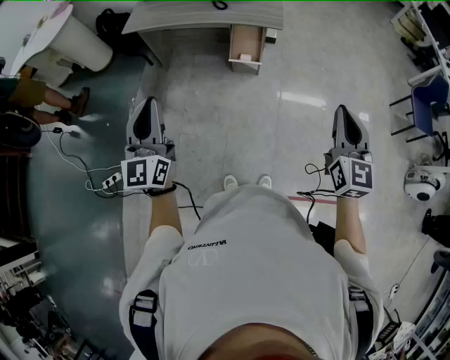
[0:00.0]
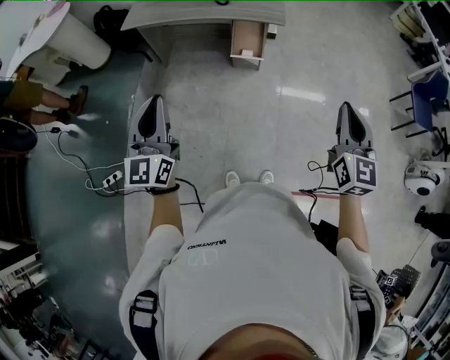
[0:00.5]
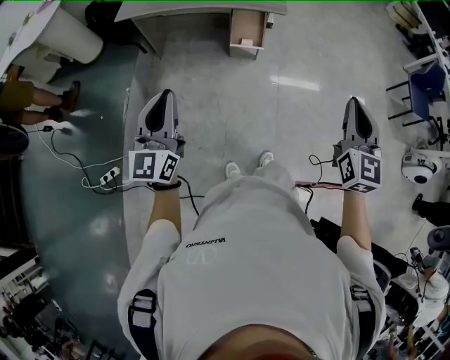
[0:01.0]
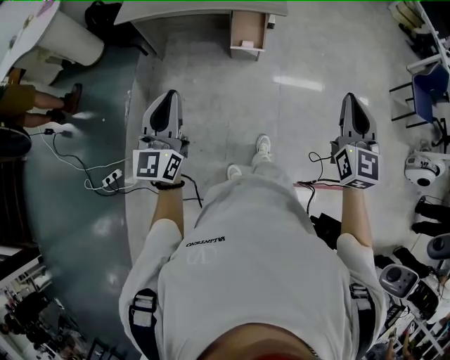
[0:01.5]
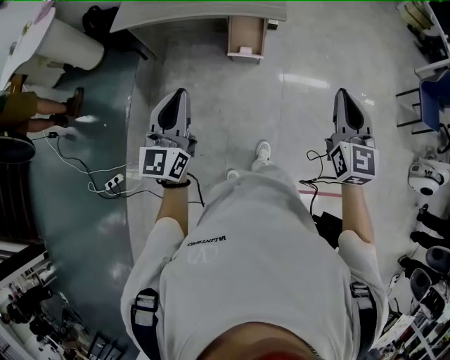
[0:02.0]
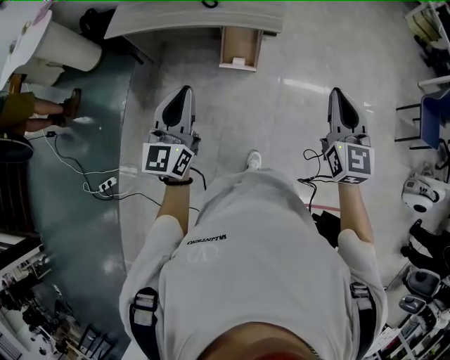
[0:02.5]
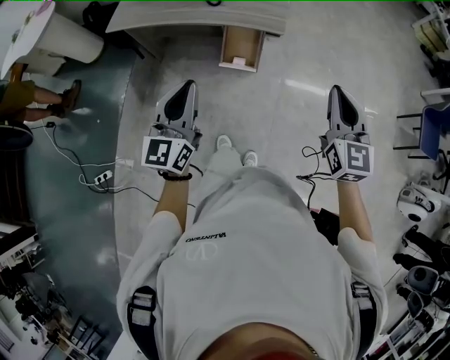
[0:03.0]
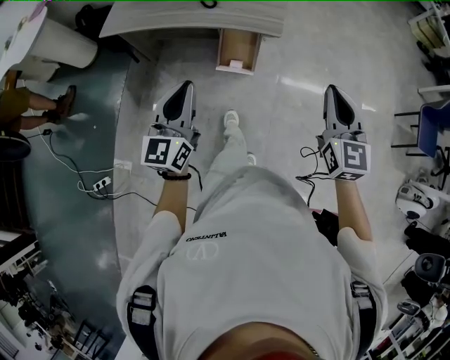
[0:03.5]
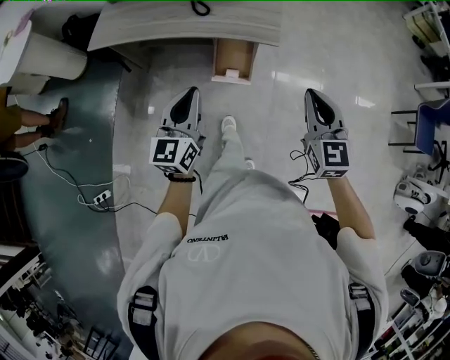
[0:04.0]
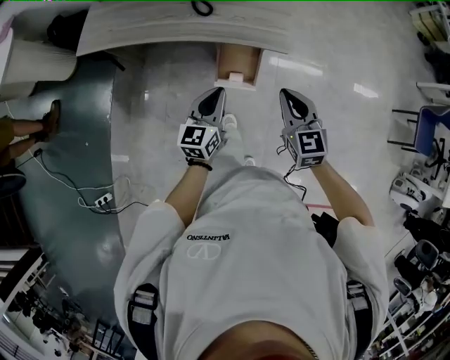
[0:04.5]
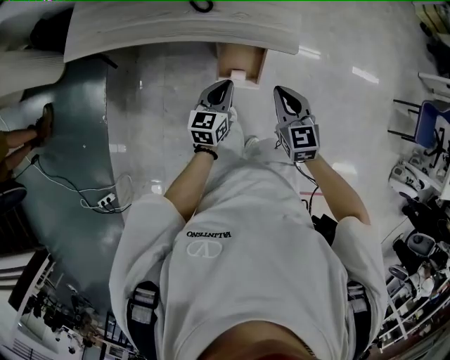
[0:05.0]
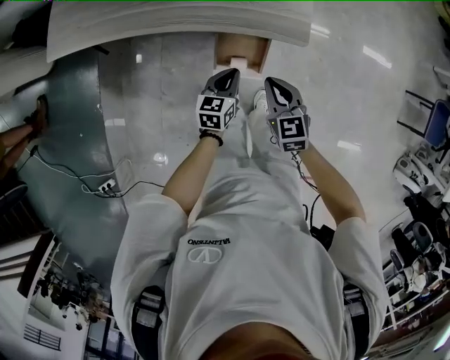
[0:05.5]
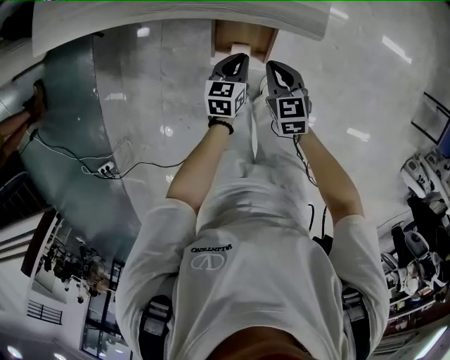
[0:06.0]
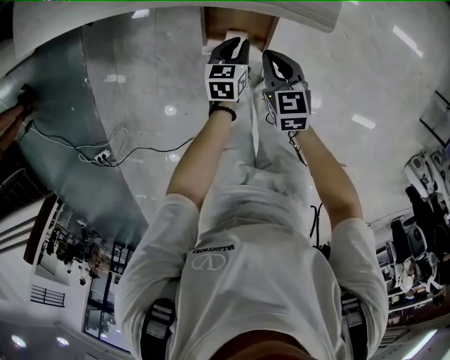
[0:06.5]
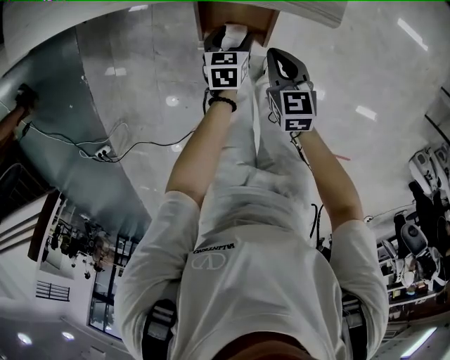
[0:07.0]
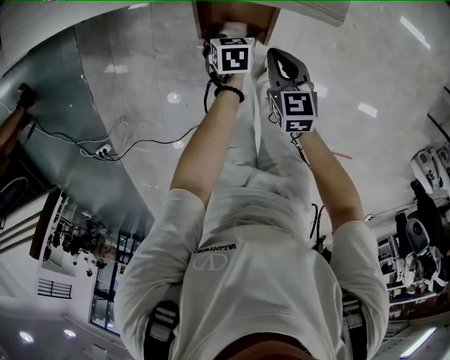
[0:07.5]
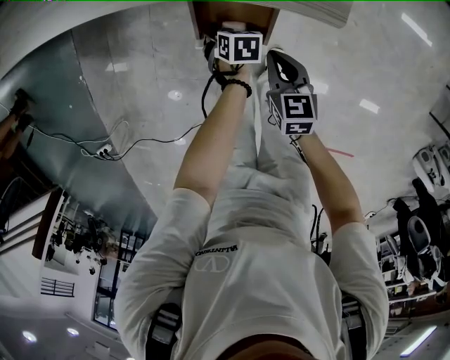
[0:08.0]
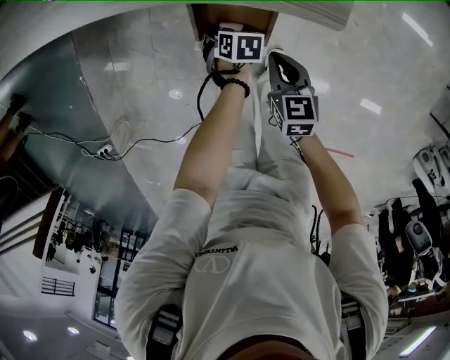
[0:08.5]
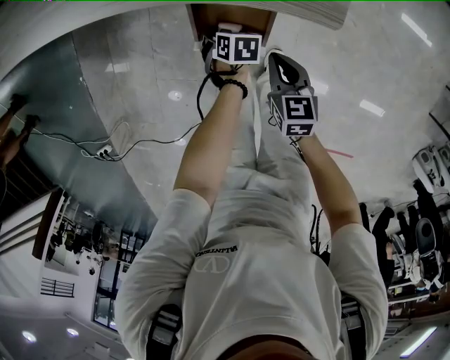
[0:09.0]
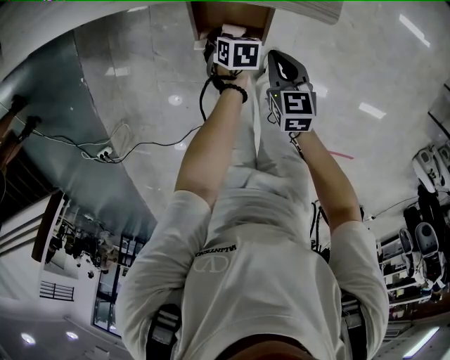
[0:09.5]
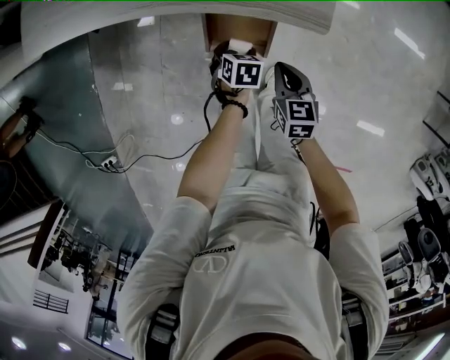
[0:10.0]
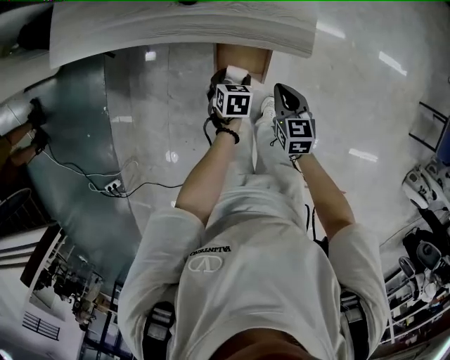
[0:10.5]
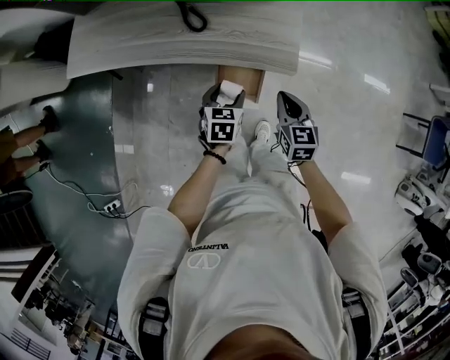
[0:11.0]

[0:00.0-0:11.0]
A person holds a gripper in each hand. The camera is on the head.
0:00.0 to 0:02.0: The left gripper shifts about 15 cm forward, downward and to the right. The right gripper travels forward by some 10 cm.
0:02.0 to 0:03.5: The right gripper heads forward, covering approximately 15 cm; the left gripper shifts some 15 cm forward and to the right.
0:03.5 to 0:05.5: The left gripper moves downward and forward, some 50 cm, and tilts its fingers about 40 degrees downward, while the right gripper is displaced downward, forward and to the left by some 40 cm, and swivels some 30 degrees.
0:05.5 to 0:07.5: The two grippers go approximately 20 cm downward. The left gripper points its fingers approximately 40 degrees further downward, and opens up.
0:07.5 to 0:09.0: There are only small adjustments of the grippers.
0:09.0 to 0:11.0: Both grippers travel together upward, approximately 30 cm. The left gripper points its fingers some 30 degrees further upward.

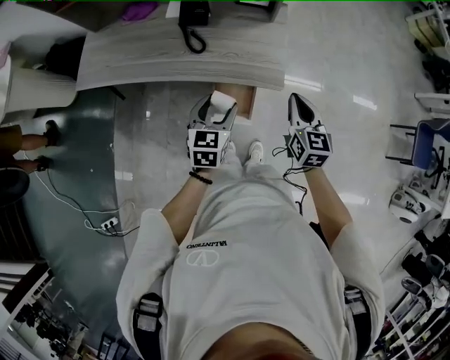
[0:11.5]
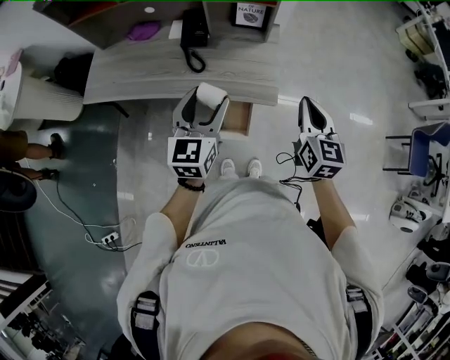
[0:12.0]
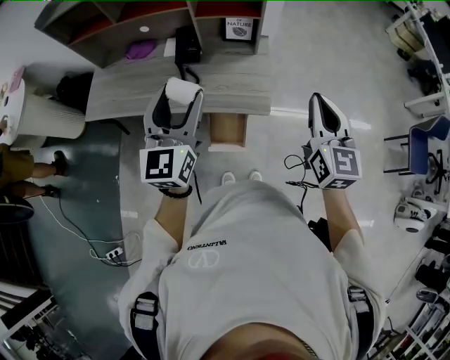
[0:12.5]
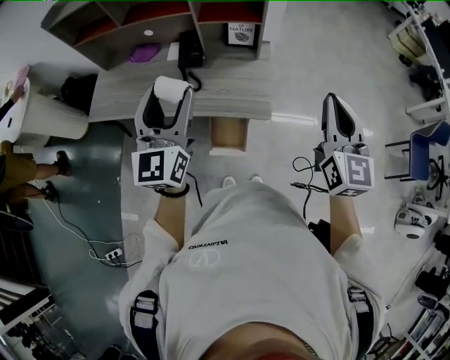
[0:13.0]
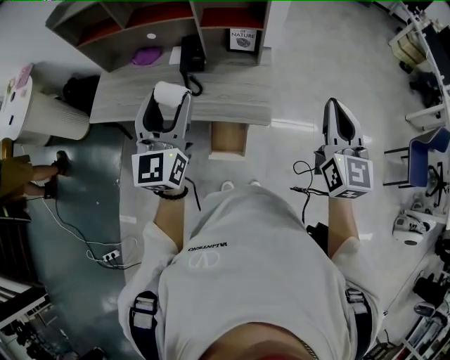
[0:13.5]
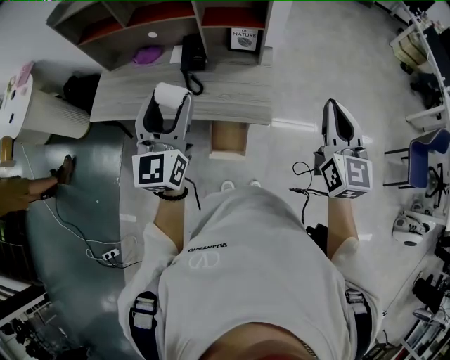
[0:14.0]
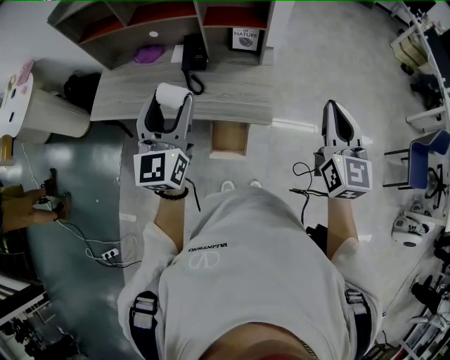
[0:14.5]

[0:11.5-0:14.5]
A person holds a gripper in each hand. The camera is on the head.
0:11.5 to 0:13.0: Both grippers move upward, some 30 cm. The right gripper swivels approximately 20 degrees; the left gripper angles its fingers upward, by approximately 40 degrees.
0:13.0 to 0:14.5: The grippers move only a little.

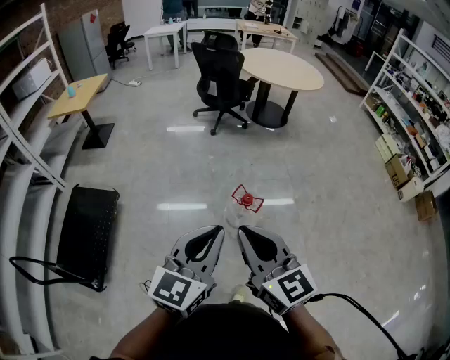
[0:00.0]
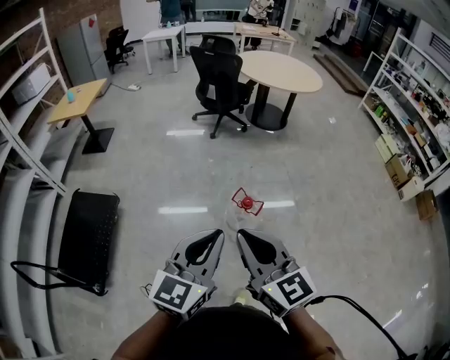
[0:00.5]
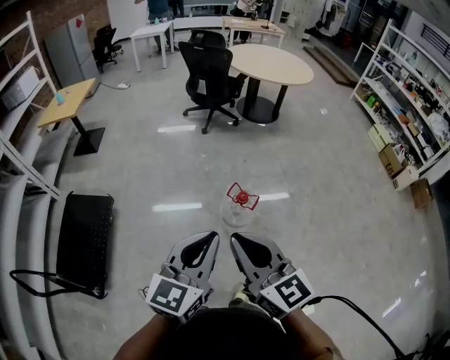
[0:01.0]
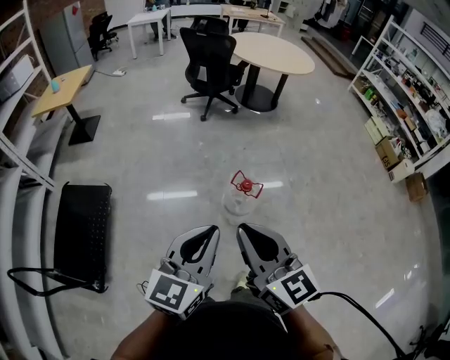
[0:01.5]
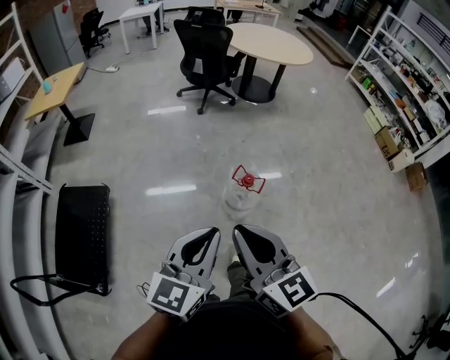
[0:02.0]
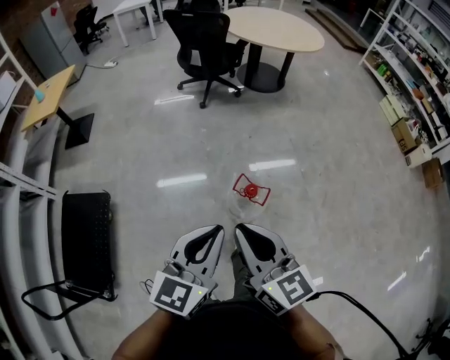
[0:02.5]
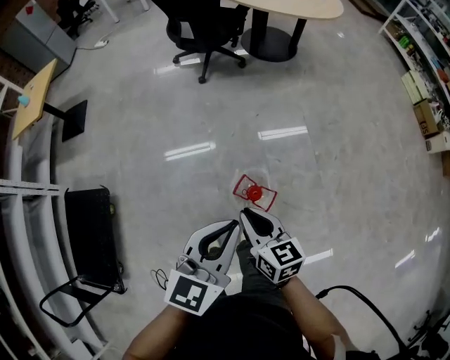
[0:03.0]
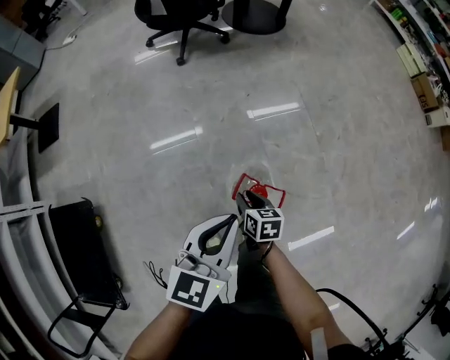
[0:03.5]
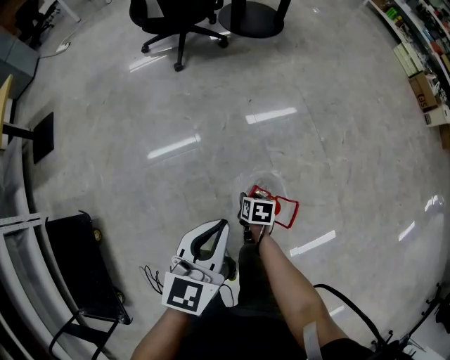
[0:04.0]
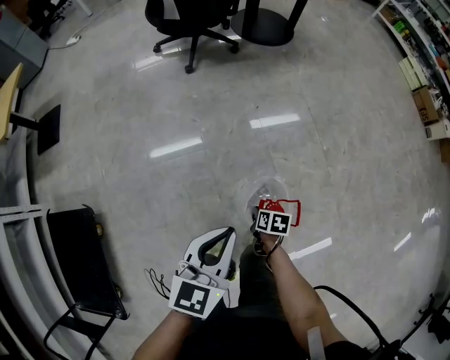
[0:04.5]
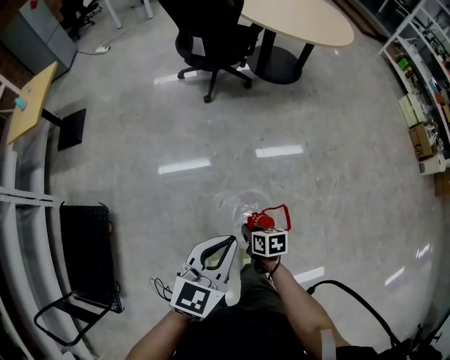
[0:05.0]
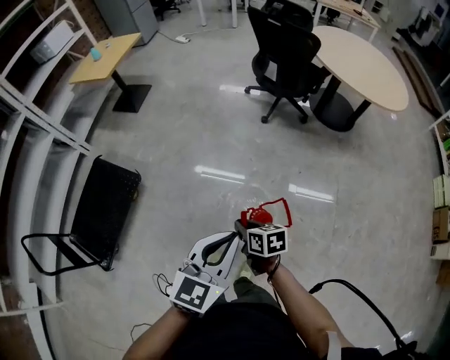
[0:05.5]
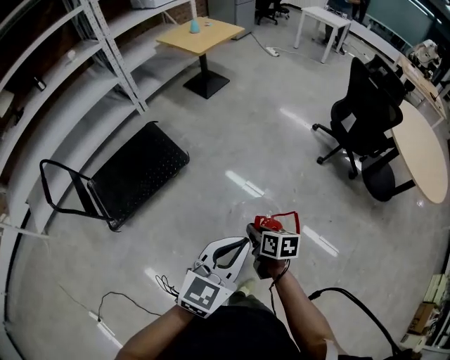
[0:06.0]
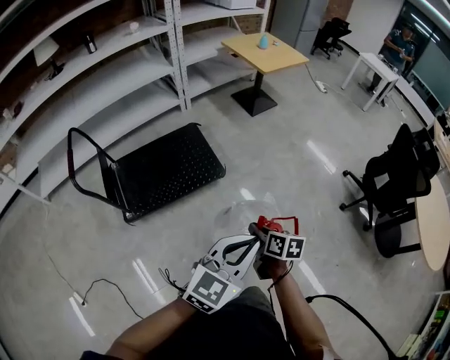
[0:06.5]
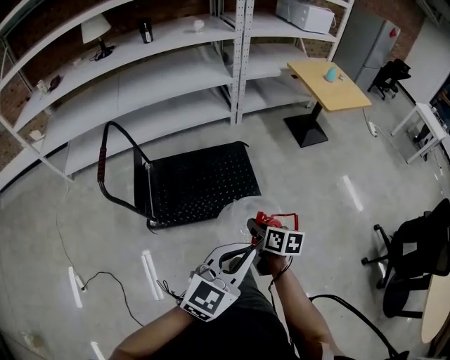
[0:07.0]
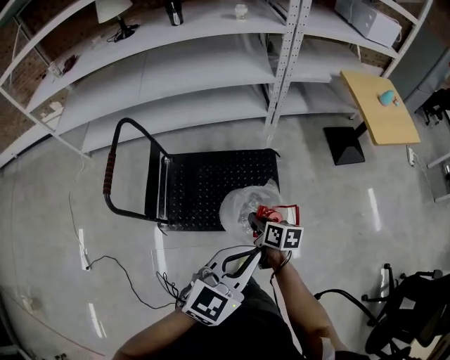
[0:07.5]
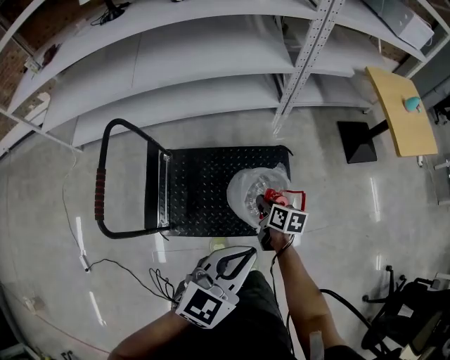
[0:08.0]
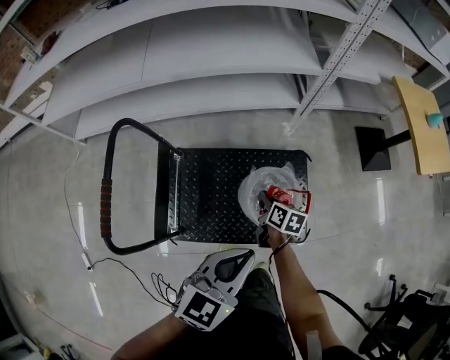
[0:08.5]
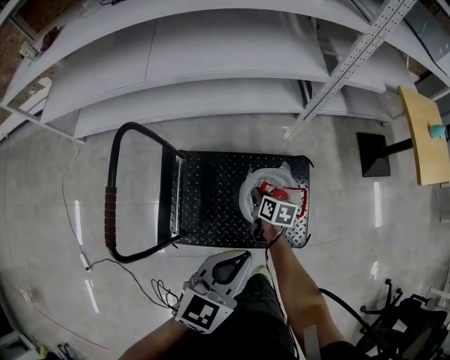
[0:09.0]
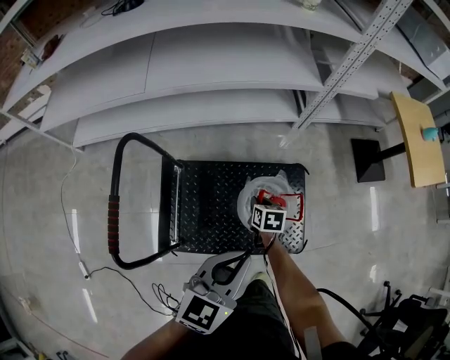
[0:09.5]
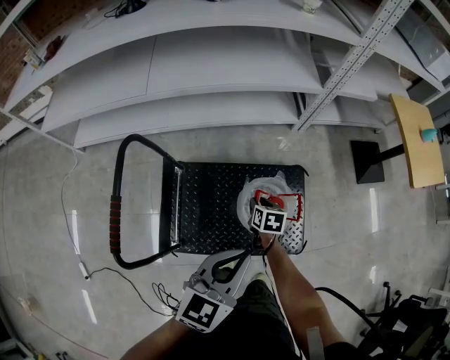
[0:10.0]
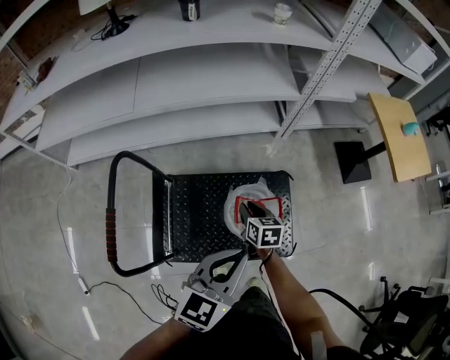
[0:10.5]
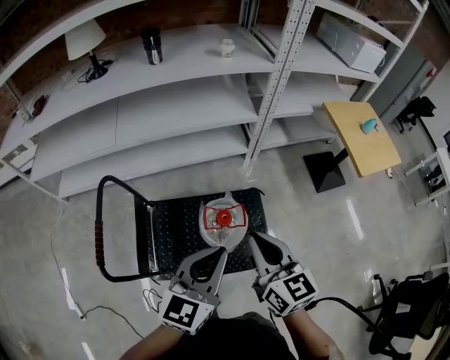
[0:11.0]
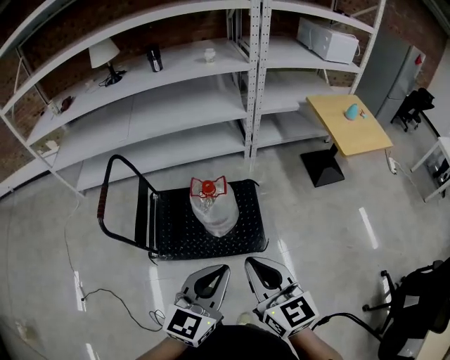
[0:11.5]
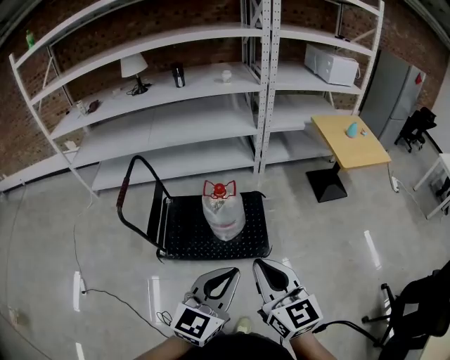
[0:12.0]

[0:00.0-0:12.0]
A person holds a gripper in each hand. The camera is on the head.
0:00.0 to 0:02.0: Both grippers travel together to the left, about 10 cm.
0:02.0 to 0:04.0: The two grippers travel together, forward, some 50 cm. The right gripper heads downward, covering approximately 70 cm, points its fingers roughly 60 degrees further downward, and opens. Meanwhile the left gripper heads downward, covering approximately 35 cm.
0:04.0 to 0:06.0: The two grippers go about 35 cm upward. The left gripper turns by roughly 40 degrees. The right gripper rotates about 70 degrees, and closes.
0:06.0 to 0:08.0: The pair of grippers is taken roughly 90 cm. The right gripper rotates some 40 degrees; the left gripper changes its angle by roughly 40 degrees.
0:08.0 to 0:10.0: The left gripper moves to the left and forward, some 20 cm. Meanwhile the right gripper heads to the left, forward and downward, covering approximately 20 cm, changes its angle by some 20 degrees, and opens.
0:10.0 to 0:12.0: The pair of grippers is taken backward and to the right, some 60 cm. The left gripper travels upward by roughly 20 cm. Meanwhile the right gripper is displaced upward by some 50 cm, angles its fingers upward, by approximately 50 degrees, and closes its fingers.
